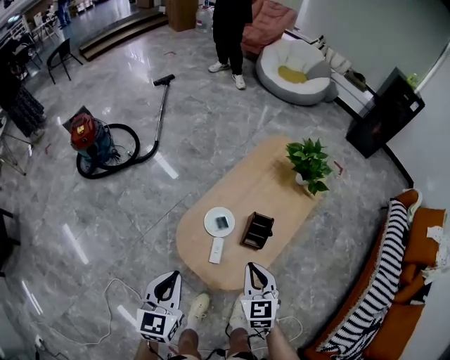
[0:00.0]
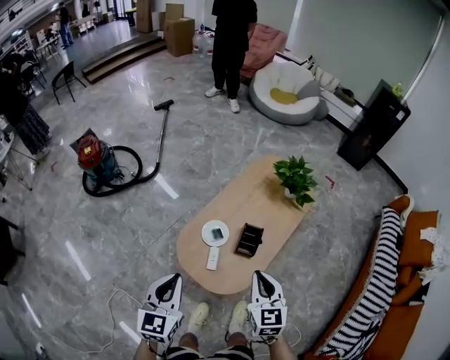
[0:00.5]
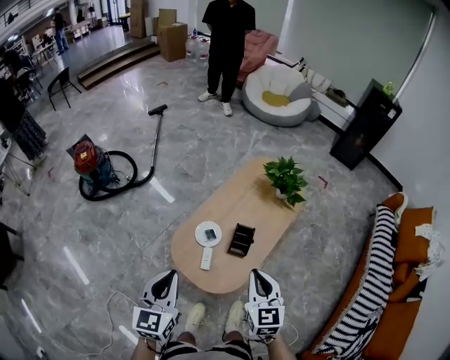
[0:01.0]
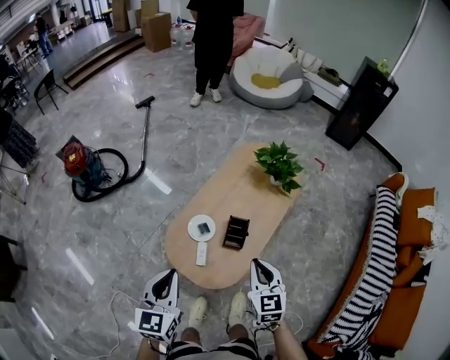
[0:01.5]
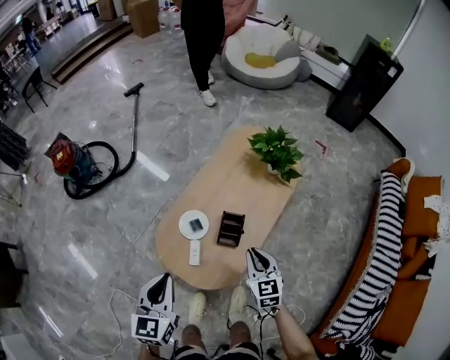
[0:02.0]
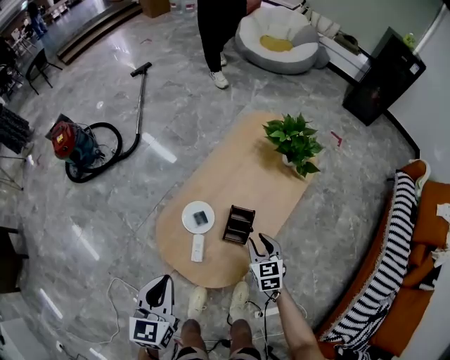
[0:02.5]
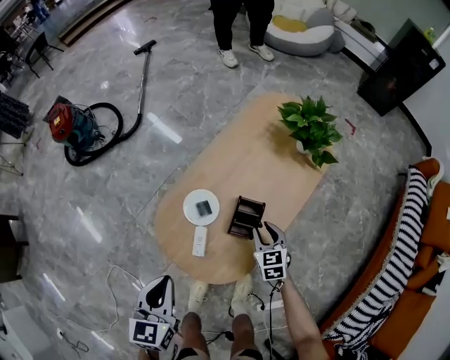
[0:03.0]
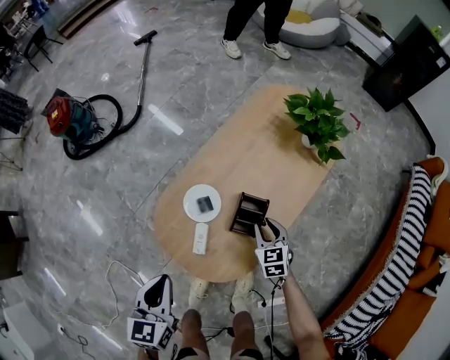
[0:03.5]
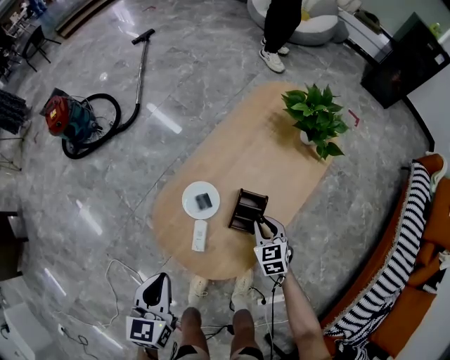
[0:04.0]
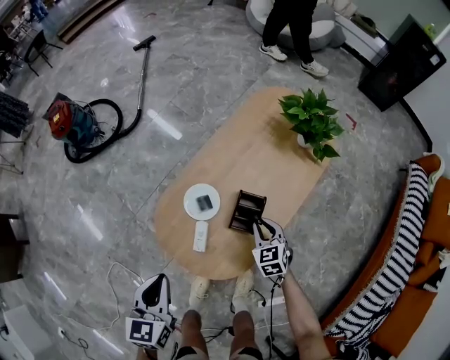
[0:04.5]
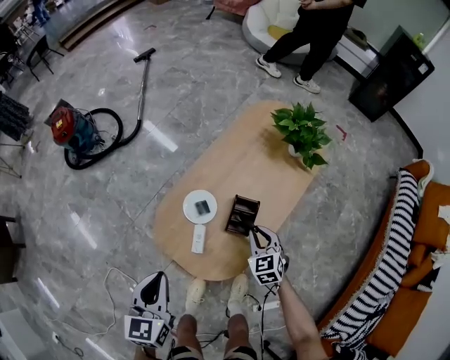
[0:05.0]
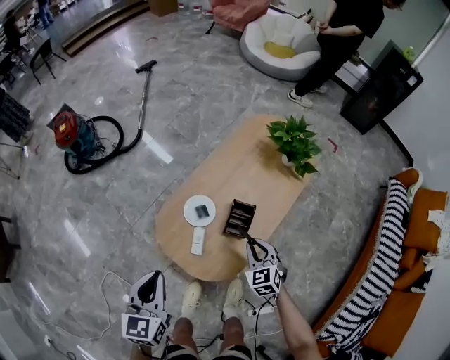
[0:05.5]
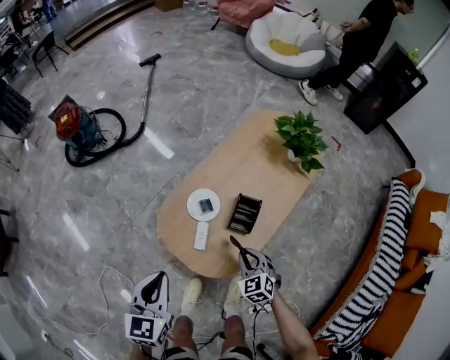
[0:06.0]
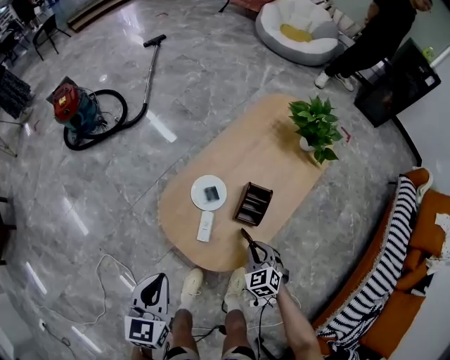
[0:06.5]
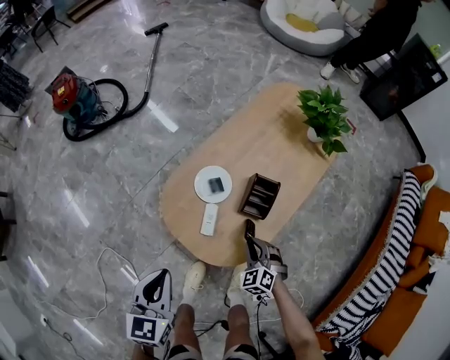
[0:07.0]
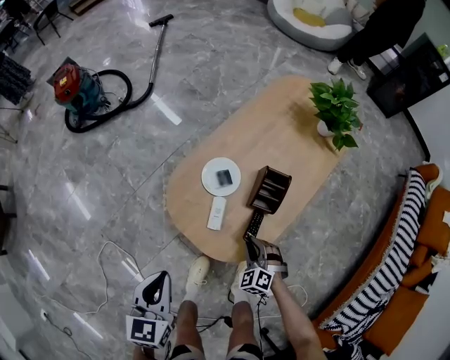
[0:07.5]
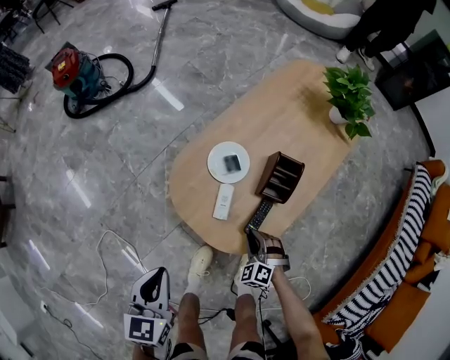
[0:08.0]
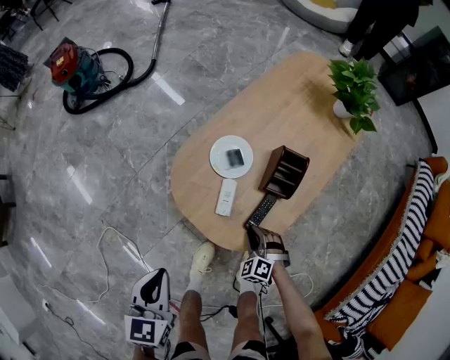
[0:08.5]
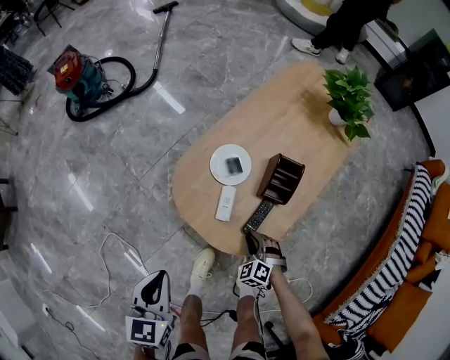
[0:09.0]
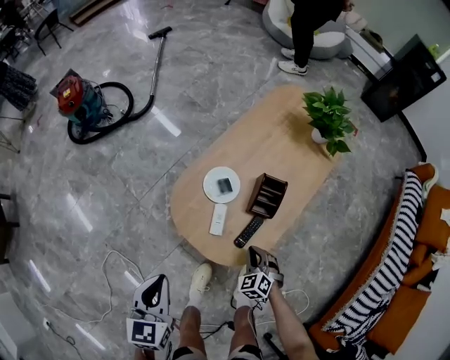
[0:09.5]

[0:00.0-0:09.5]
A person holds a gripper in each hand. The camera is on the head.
0:00.0 to 0:02.0: The two grippers go roughly 10 cm to the right. The right gripper reaches approximately 15 cm upward, then returns. Meanwhile the left gripper goes upward and returns, about 10 cm each way.
0:02.0 to 0:04.0: Both grippers travel together downward, some 20 cm.
0:04.0 to 0:05.5: The left gripper shifts some 10 cm upward, while the right gripper moves upward and backward, about 15 cm.
0:05.5 to 0:07.5: The right gripper shifts approximately 20 cm downward, backward and to the left, and rotates roughly 30 degrees. The left gripper goes roughly 15 cm downward, backward and to the left.
0:07.5 to 0:09.5: The right gripper goes downward and returns, roughly 5 cm each way.

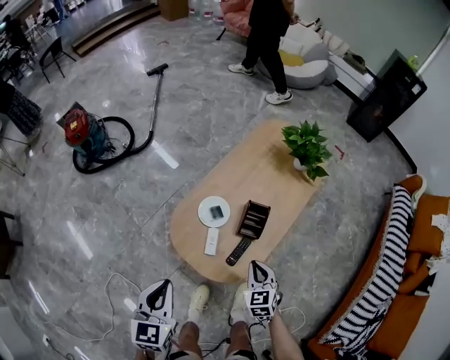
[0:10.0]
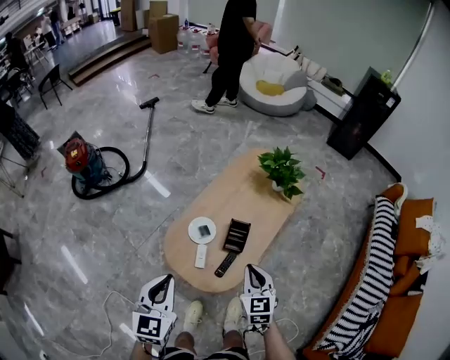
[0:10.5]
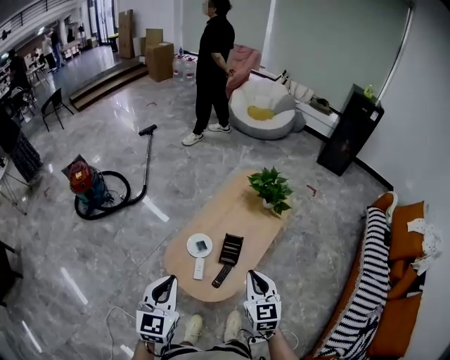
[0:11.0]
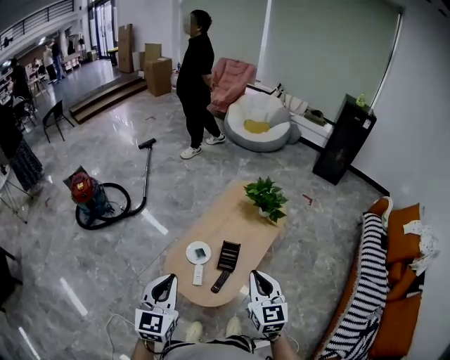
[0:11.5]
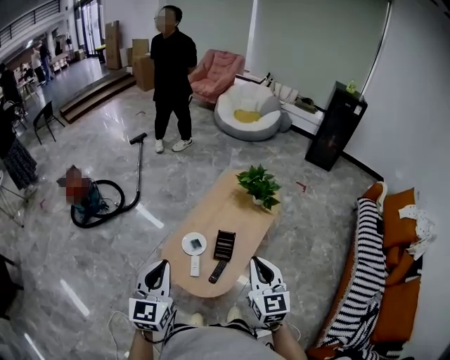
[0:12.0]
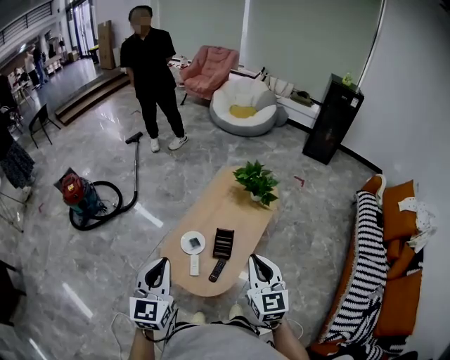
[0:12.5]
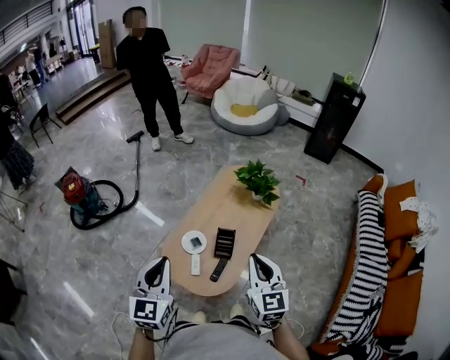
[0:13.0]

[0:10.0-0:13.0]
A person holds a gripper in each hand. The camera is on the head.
0:10.0 to 0:11.5: The right gripper moves upward, about 35 cm, and turns by some 30 degrees. The left gripper moves upward, about 20 cm.
0:11.5 to 0:13.0: The grippers stay close to where they were, moving slightly.

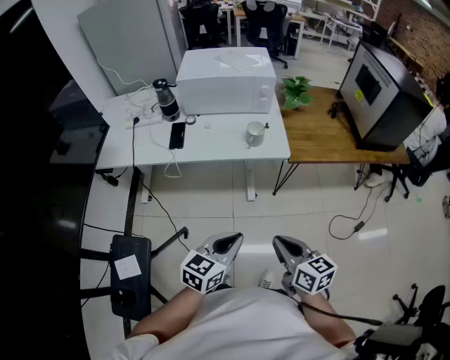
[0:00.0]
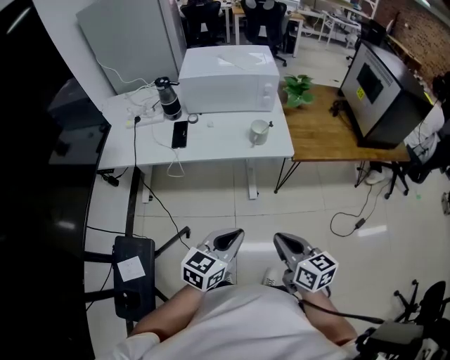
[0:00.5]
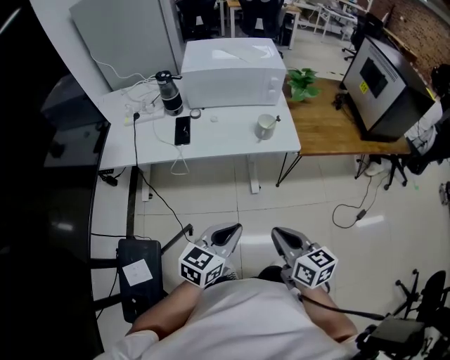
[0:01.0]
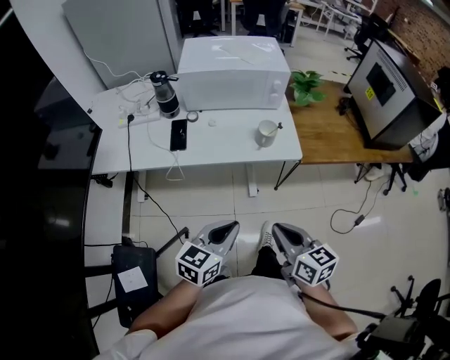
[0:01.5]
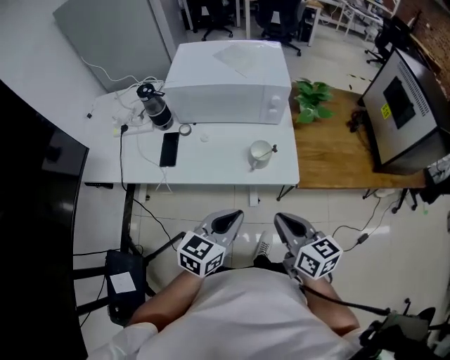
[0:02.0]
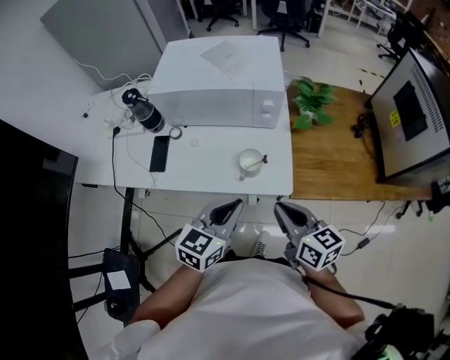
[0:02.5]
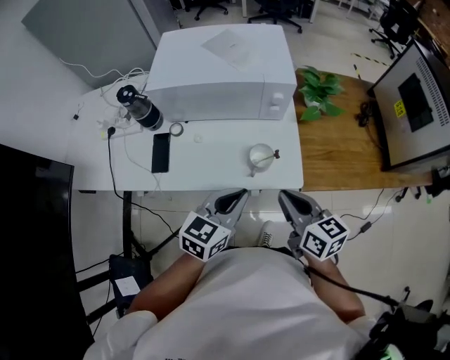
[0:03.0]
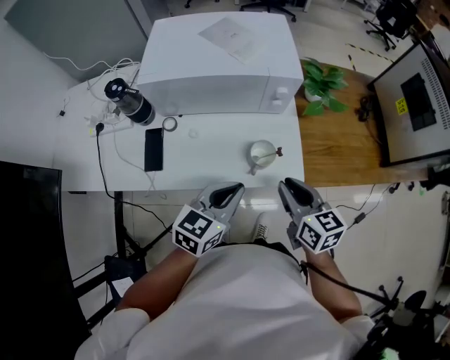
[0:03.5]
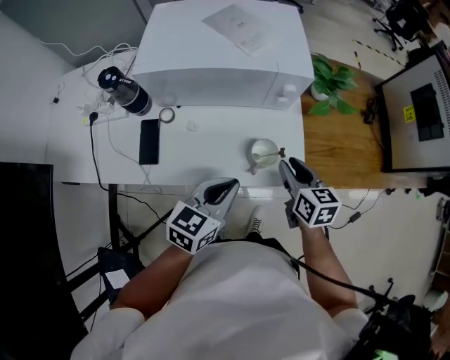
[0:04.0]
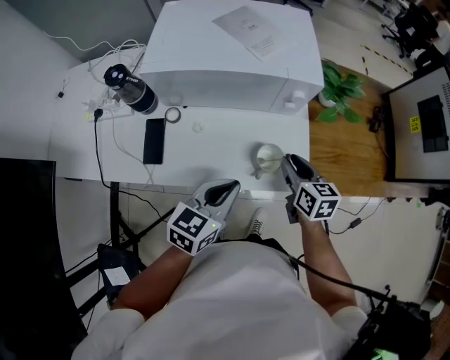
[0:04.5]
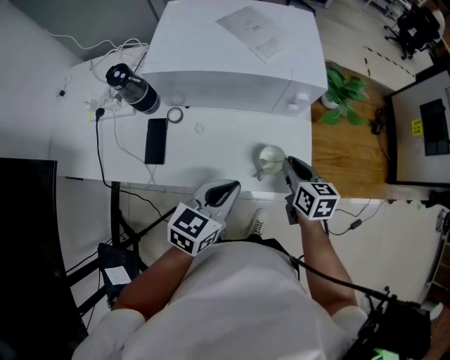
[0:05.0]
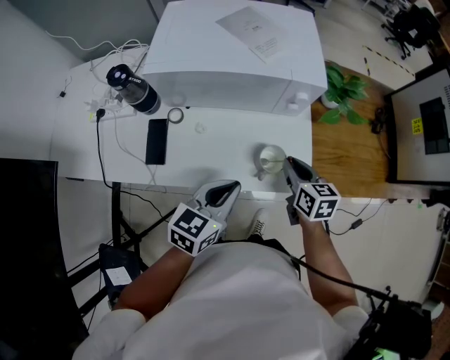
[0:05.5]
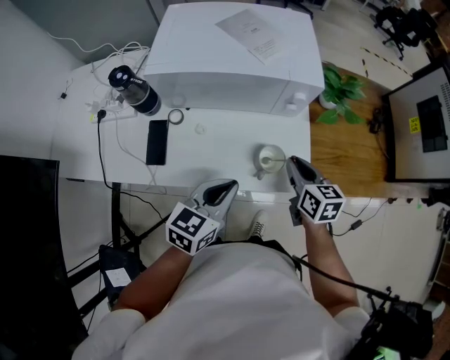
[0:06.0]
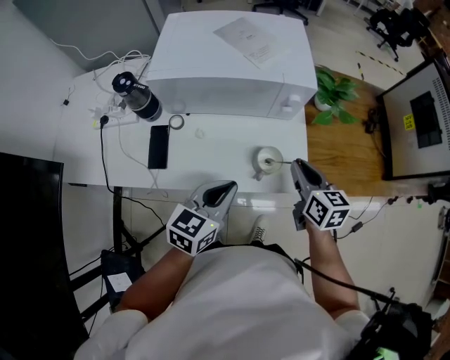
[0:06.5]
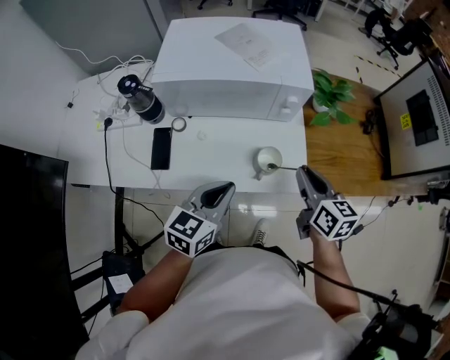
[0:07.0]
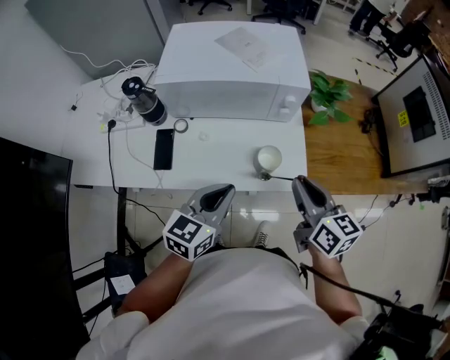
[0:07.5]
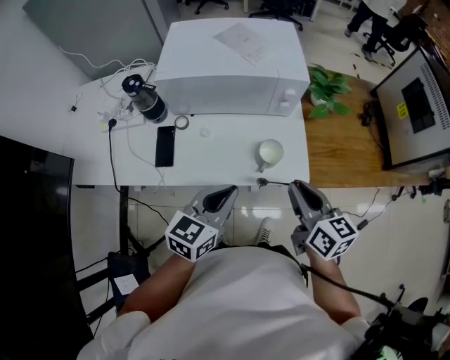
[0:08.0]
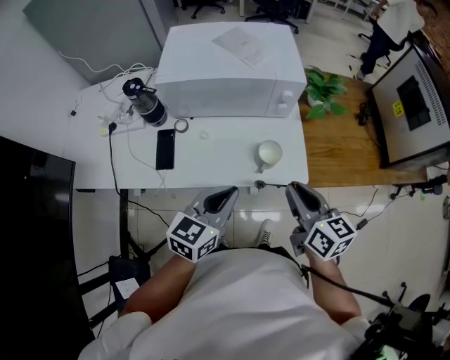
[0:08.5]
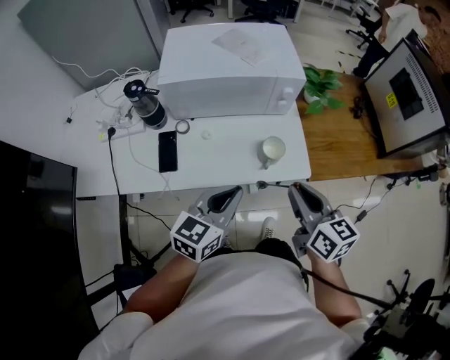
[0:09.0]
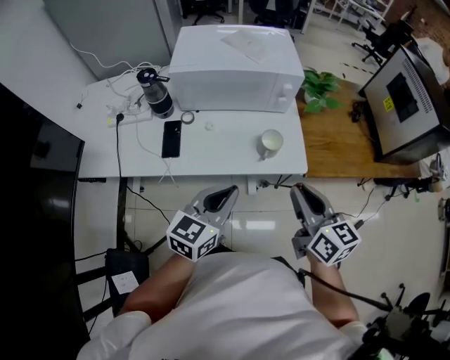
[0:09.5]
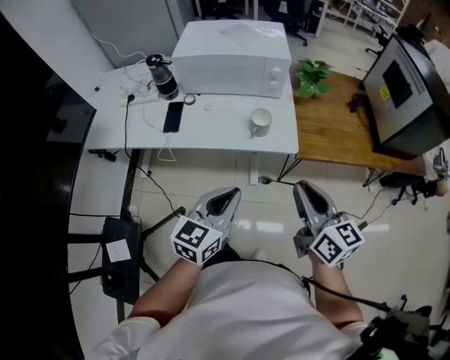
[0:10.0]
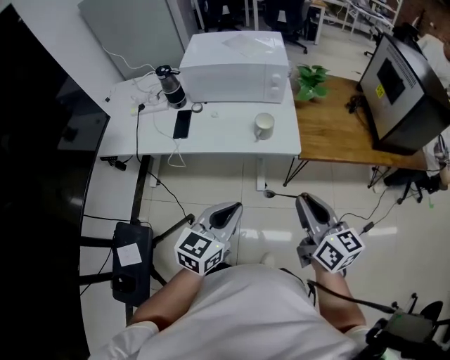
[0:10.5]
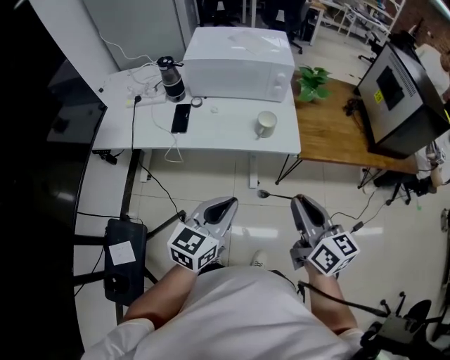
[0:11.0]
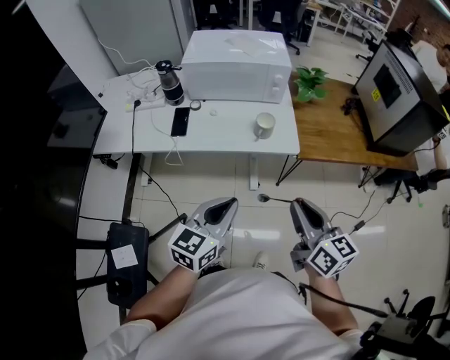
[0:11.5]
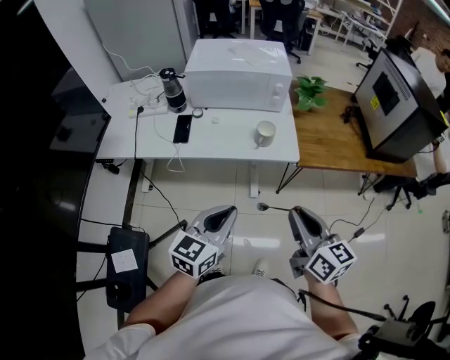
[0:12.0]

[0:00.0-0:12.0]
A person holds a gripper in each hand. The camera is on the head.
0:00.0 to 0:02.0: The two grippers go roughly 25 cm forward.
0:02.0 to 0:04.0: The two grippers go about 20 cm forward. The right gripper opens its fingers.
0:04.0 to 0:06.0: The grippers make only small movements.
0:06.0 to 0:08.0: The right gripper shifts roughly 15 cm backward and upward. The left gripper moves backward, approximately 5 cm.
0:08.0 to 0:10.0: Both grippers travel together backward, roughly 20 cm.
0:10.0 to 0:12.0: The left gripper travels backward and to the left by approximately 10 cm, while the right gripper moves backward, some 10 cm.

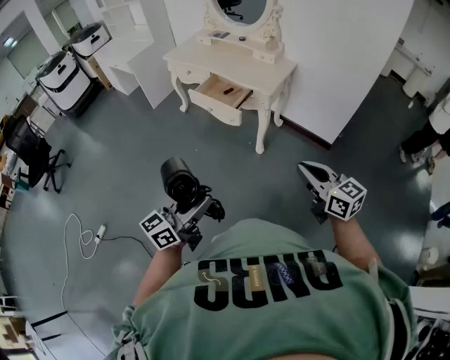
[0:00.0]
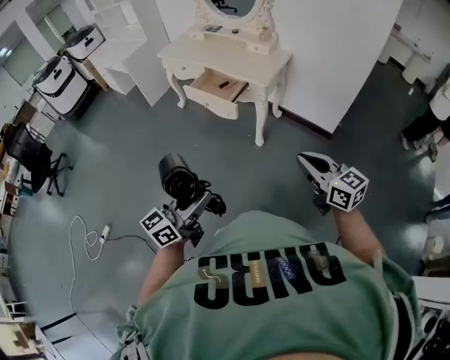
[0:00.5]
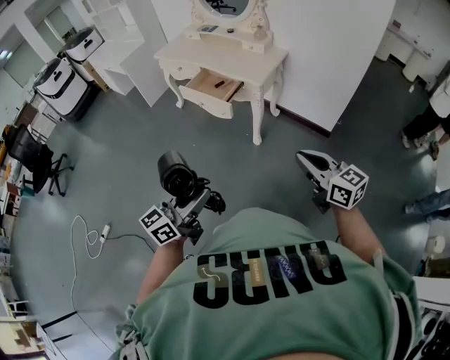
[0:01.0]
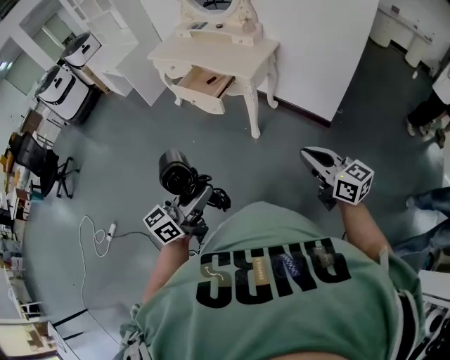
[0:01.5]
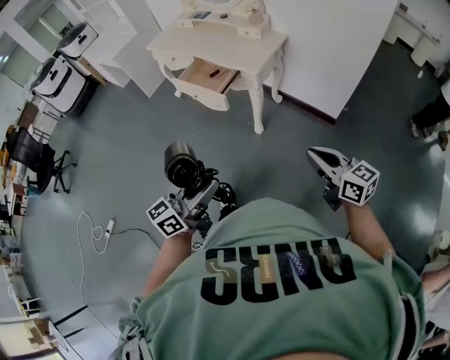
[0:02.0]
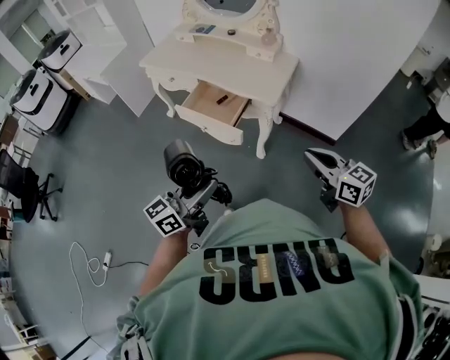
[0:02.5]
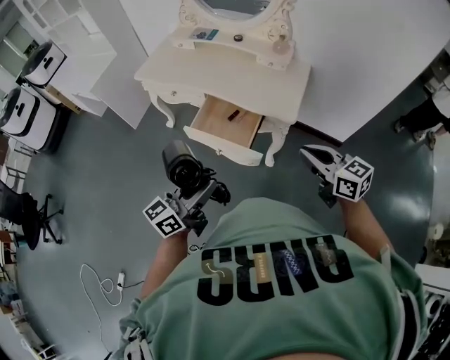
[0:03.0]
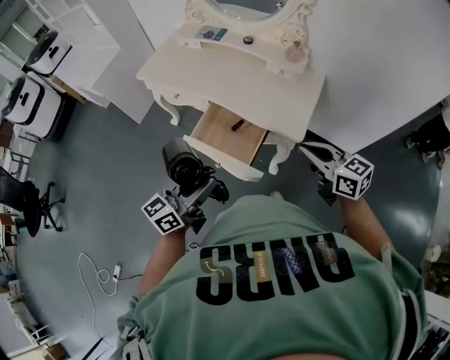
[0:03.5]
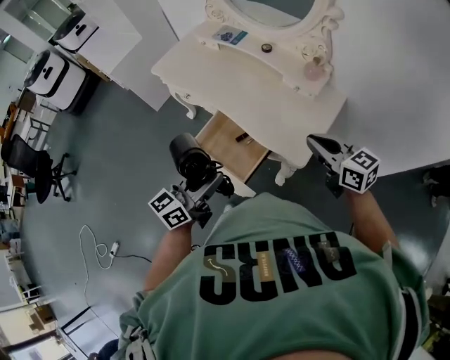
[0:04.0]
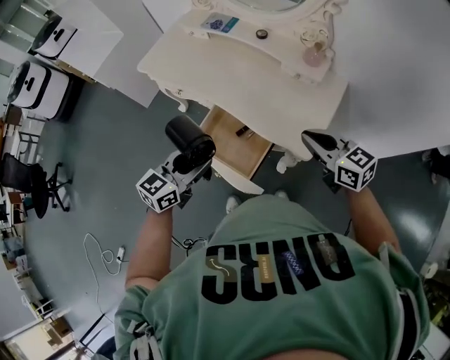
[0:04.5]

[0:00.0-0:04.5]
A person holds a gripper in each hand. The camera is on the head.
0:00.0 to 0:02.0: The two grippers go approximately 15 cm to the right and forward.
0:02.0 to 0:04.5: Both grippers are carried forward, roughly 70 cm. The left gripper swivels some 30 degrees.
